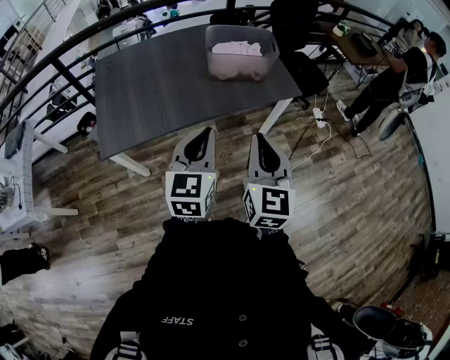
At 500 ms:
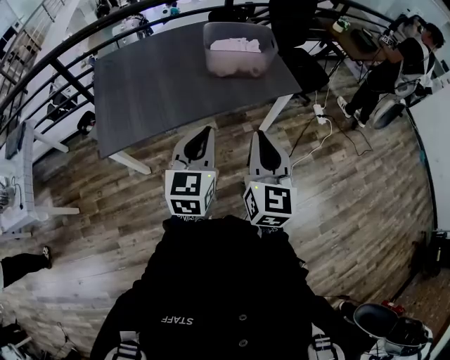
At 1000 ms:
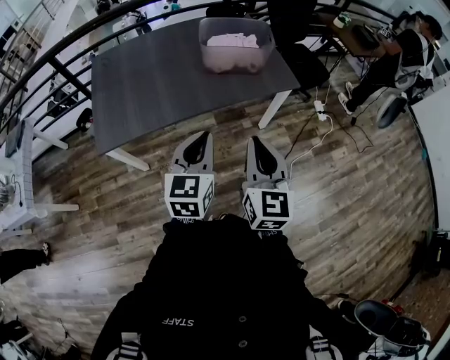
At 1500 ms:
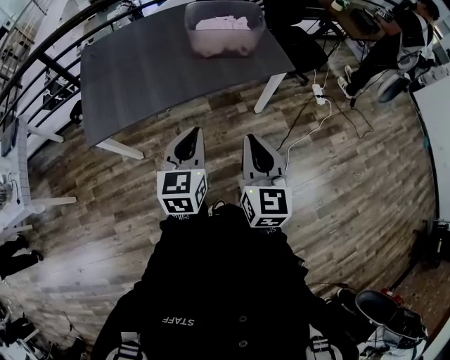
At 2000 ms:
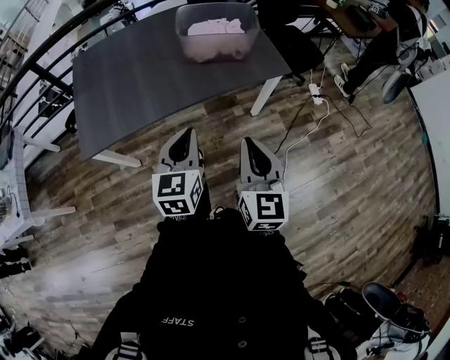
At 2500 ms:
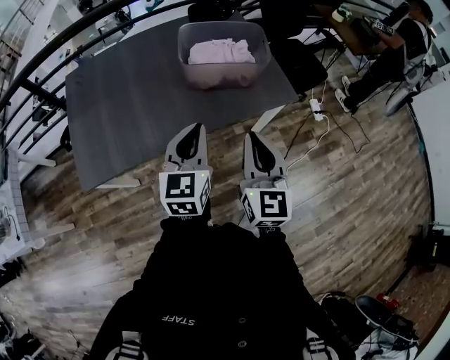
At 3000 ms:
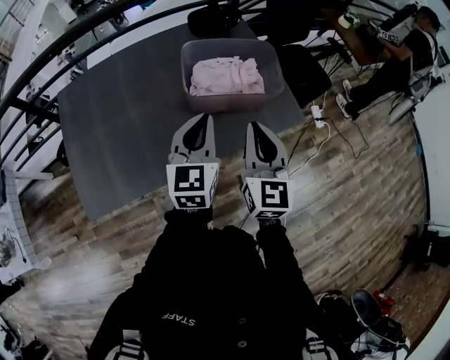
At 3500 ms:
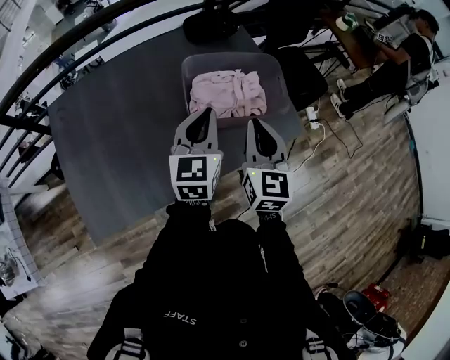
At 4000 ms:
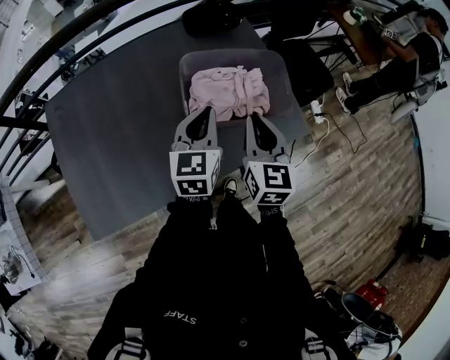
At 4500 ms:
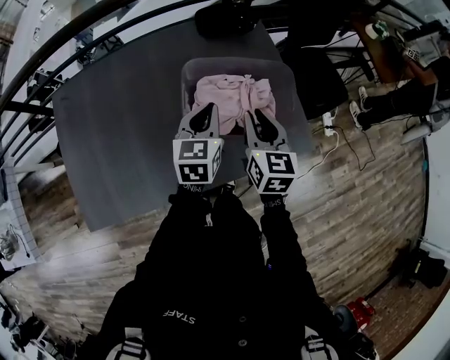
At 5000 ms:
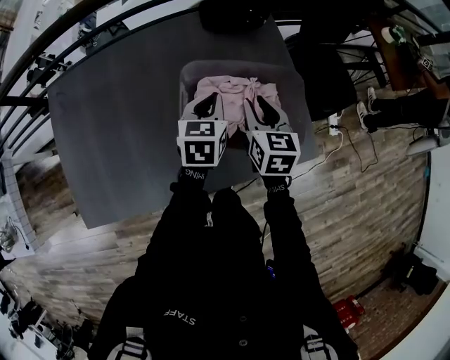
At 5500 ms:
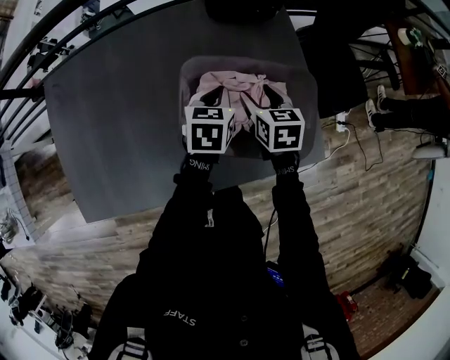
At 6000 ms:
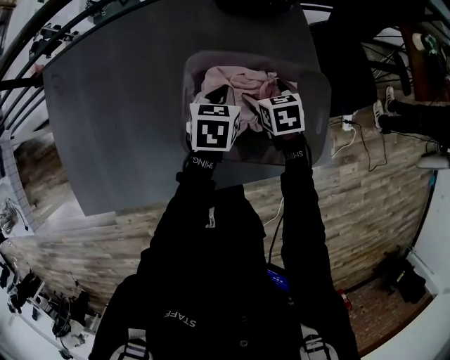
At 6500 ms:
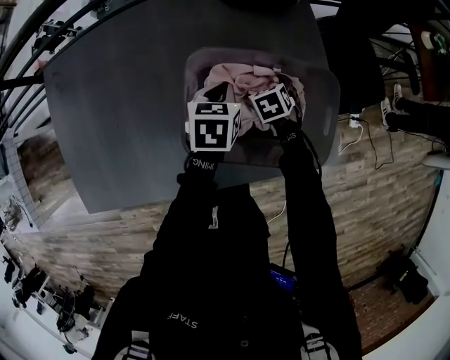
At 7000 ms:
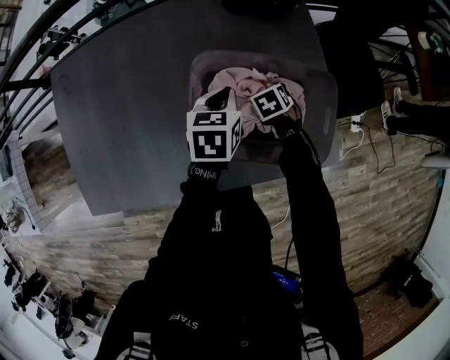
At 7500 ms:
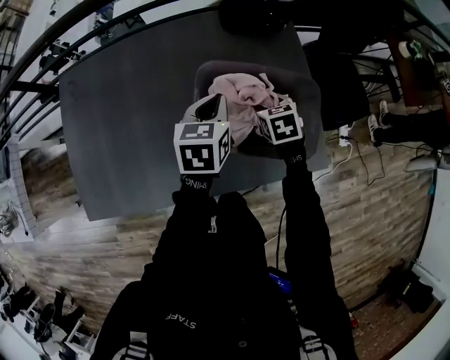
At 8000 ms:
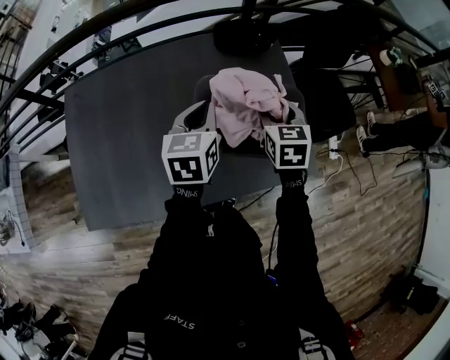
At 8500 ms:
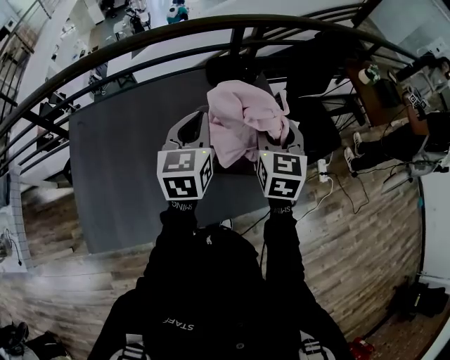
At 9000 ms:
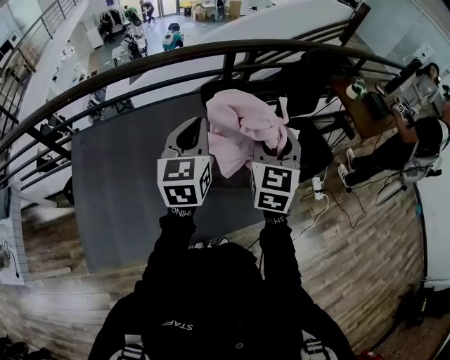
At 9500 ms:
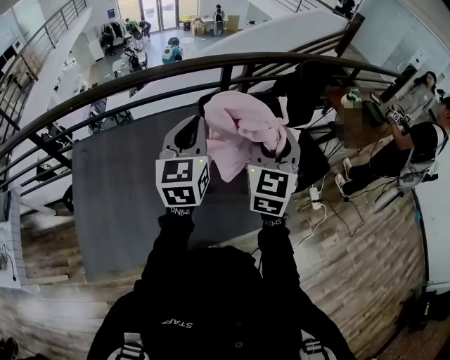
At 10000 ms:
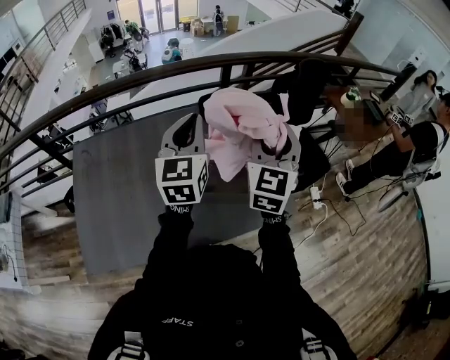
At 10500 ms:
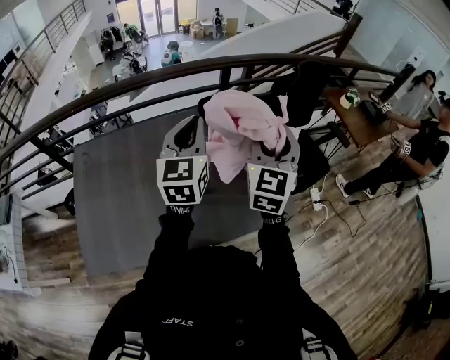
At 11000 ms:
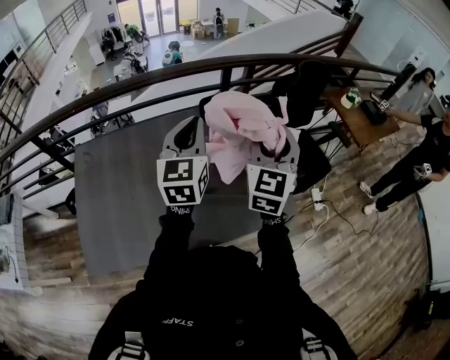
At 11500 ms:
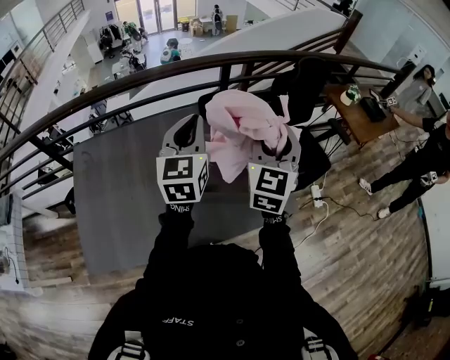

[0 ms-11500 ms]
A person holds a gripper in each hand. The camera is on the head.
0 ms to 2000 ms: The two grippers go roughly 10 cm downward and to the right.
2000 ms to 4000 ms: Both grippers are carried forward, approximately 50 cm.
4000 ms to 6000 ms: The two grippers go roughly 30 cm downward and forward. The left gripper tips its fingers downward by roughly 30 degrees, while the right gripper angles its fingers downward, by roughly 40 degrees, and opens its fingers.
6000 ms to 7500 ms: The left gripper heads upward, covering approximately 10 cm, while the right gripper moves upward, about 5 cm, and closes its fingers.
7500 ms to 9500 ms: The two grippers go some 35 cm upward. The right gripper angles its fingers upward, by about 50 degrees; the left gripper tilts its fingers about 30 degrees upward.
9500 ms to 11500 ms: Both grippers stay put.

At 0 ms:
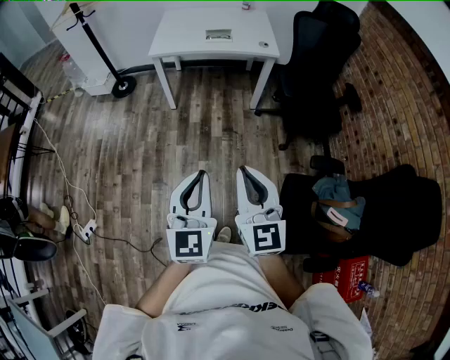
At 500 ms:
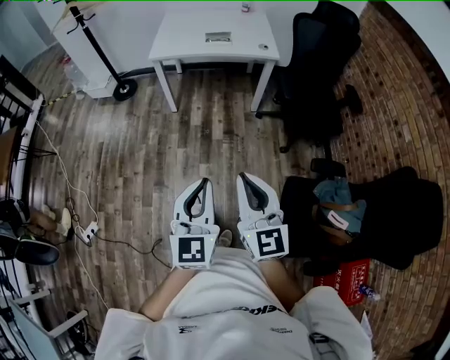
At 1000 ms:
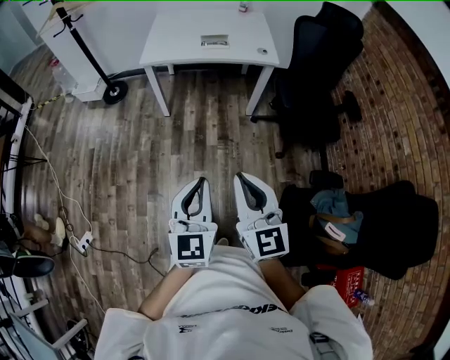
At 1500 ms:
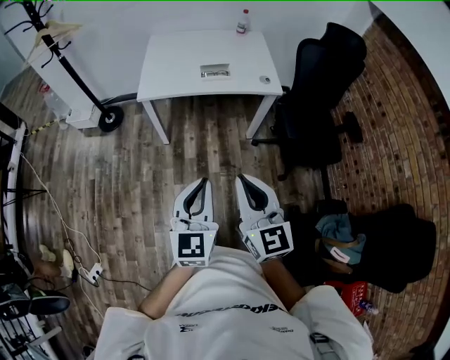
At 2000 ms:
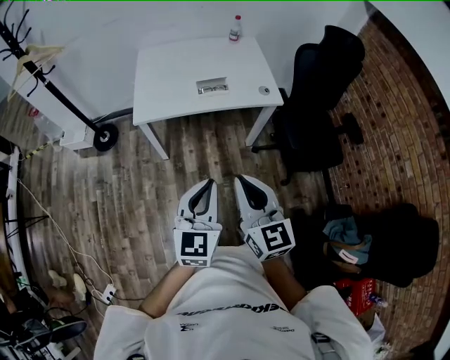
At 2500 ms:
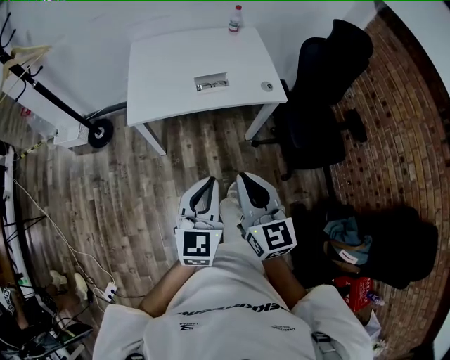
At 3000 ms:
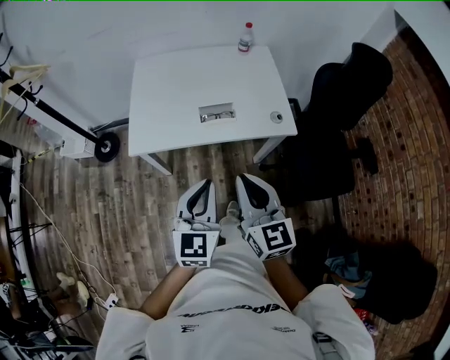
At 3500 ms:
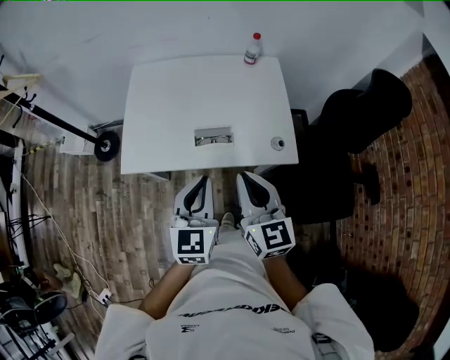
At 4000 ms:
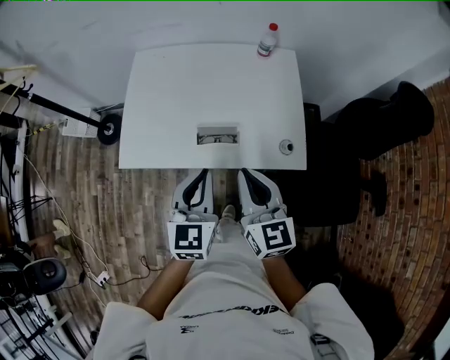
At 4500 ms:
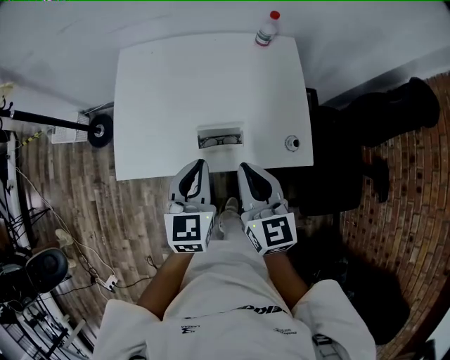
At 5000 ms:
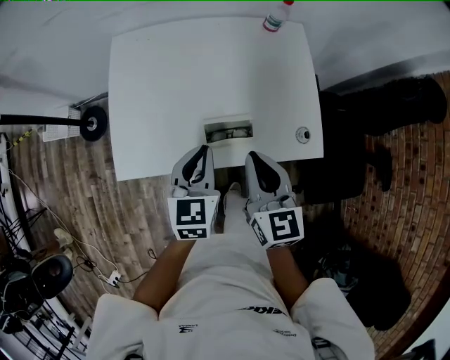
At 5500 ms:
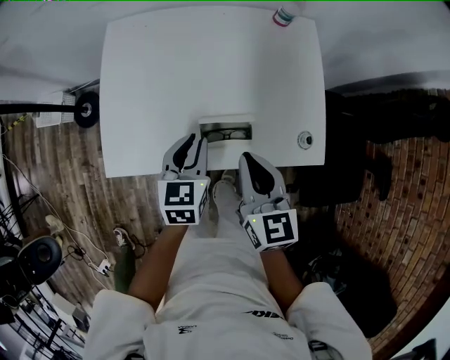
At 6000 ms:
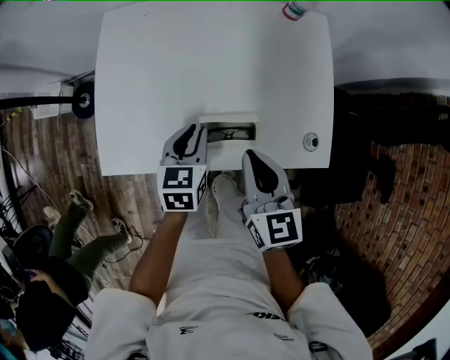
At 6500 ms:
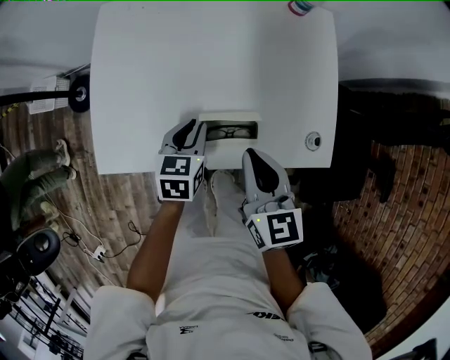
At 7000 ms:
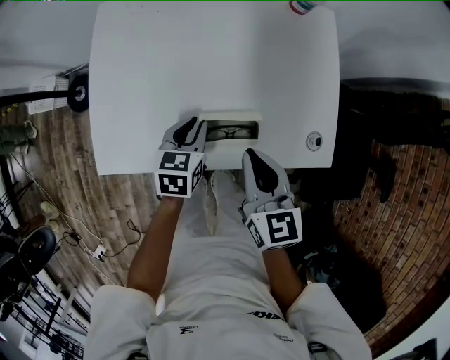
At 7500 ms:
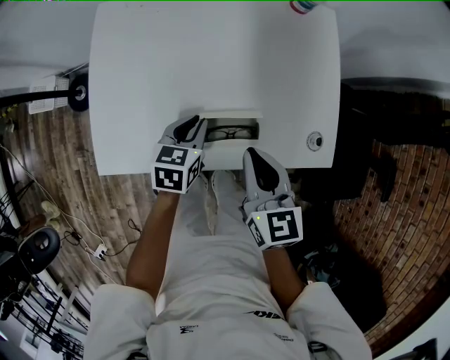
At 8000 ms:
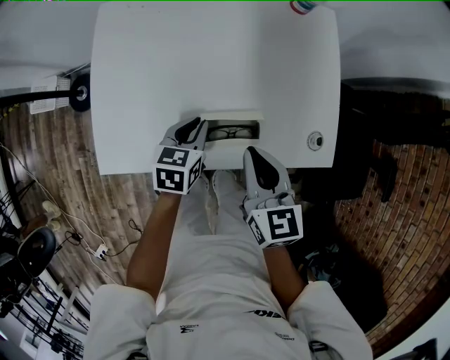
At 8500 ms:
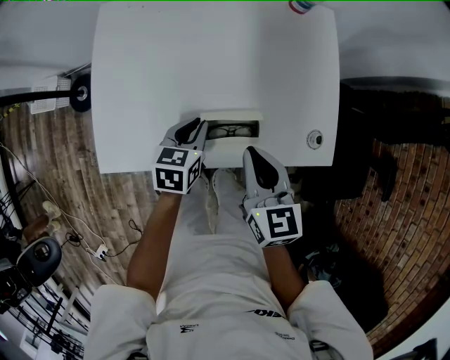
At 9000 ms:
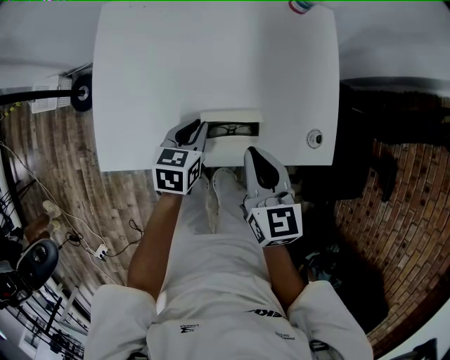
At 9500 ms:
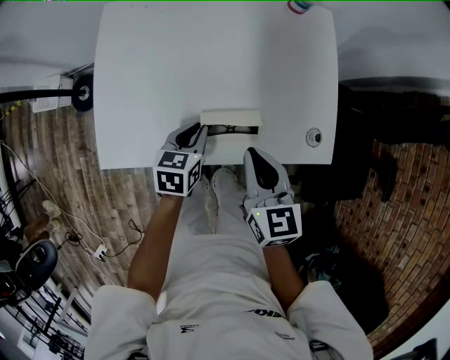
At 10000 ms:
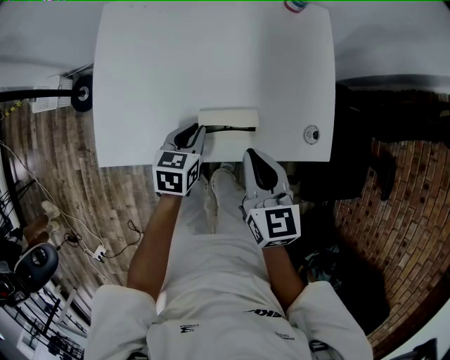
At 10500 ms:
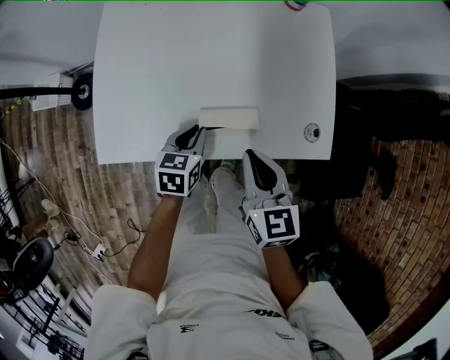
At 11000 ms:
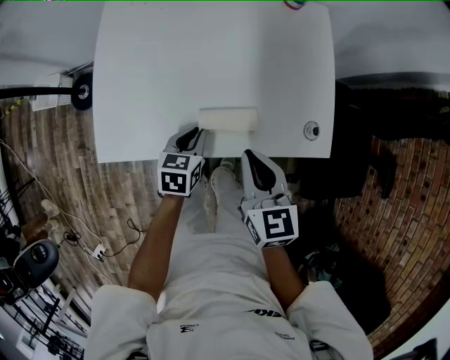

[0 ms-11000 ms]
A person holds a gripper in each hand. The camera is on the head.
0 ms to 2000 ms: Both grippers are carried forward, about 40 cm.
2000 ms to 3500 ms: Both grippers travel together forward, approximately 40 cm.
3500 ms to 5500 ms: The grippers both shift forward and downward by approximately 25 cm. The left gripper turns by about 20 degrees.
5500 ms to 7500 ms: The left gripper moves downward, approximately 10 cm, while the right gripper shifts roughly 5 cm downward.
7500 ms to 9000 ms: There are only small adjustments of the grippers.
9000 ms to 11000 ms: The left gripper is displaced backward by about 5 cm.

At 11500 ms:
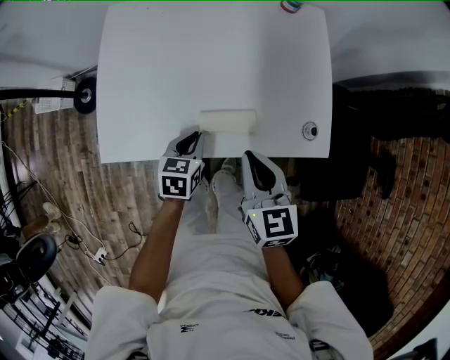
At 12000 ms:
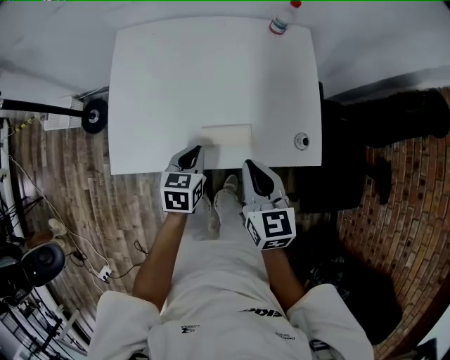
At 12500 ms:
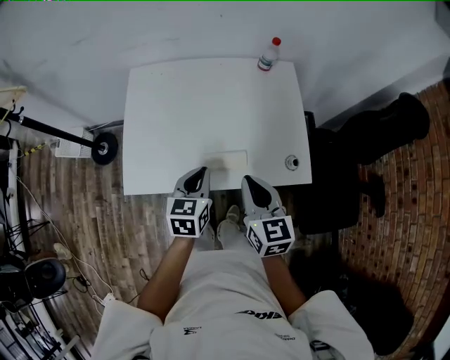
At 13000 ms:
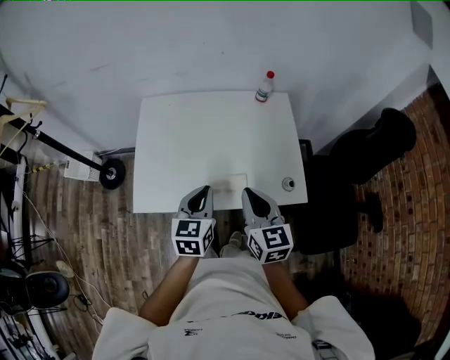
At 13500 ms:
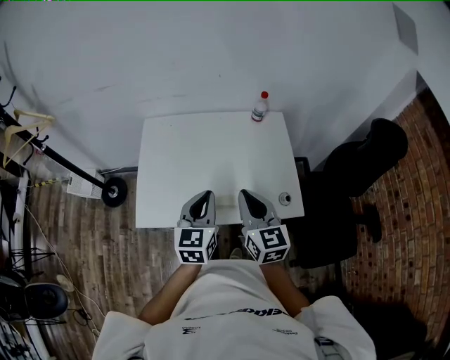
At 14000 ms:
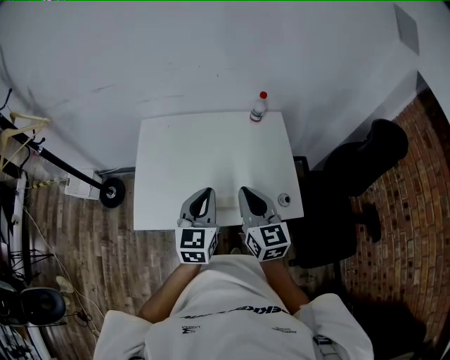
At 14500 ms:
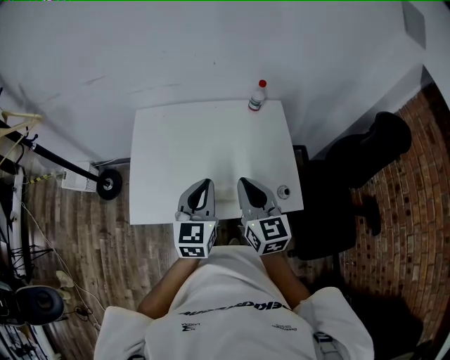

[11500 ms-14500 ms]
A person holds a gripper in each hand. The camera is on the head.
11500 ms to 13000 ms: The right gripper travels upward by about 15 cm, while the left gripper is displaced upward by some 25 cm, and rotates about 20 degrees.
13000 ms to 14500 ms: The left gripper heads upward, covering about 5 cm; the right gripper travels forward by some 5 cm.

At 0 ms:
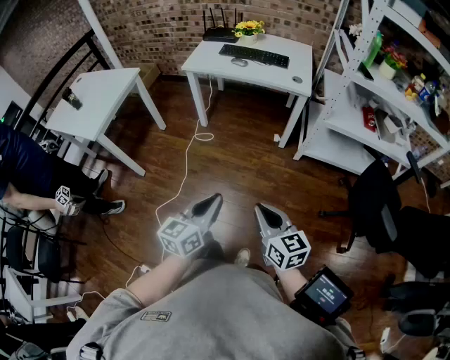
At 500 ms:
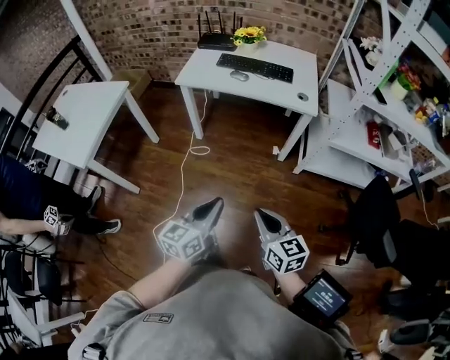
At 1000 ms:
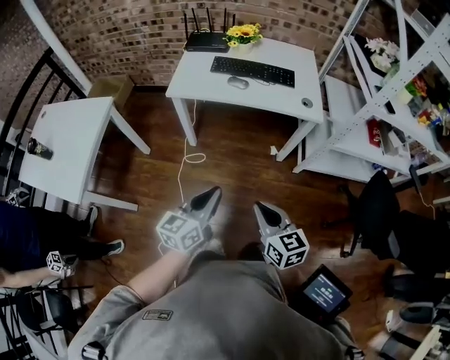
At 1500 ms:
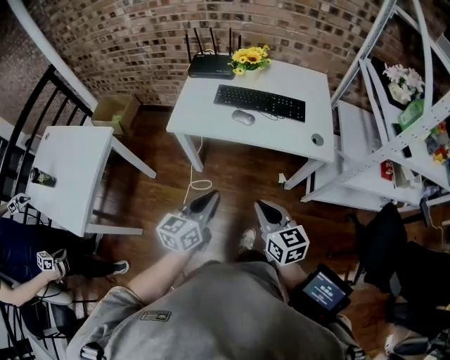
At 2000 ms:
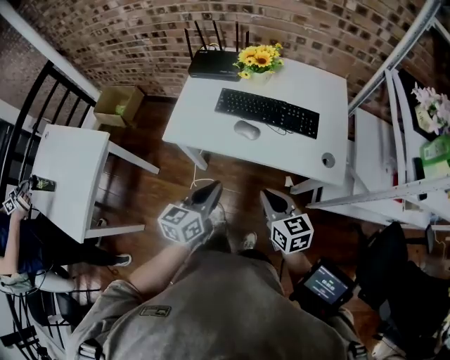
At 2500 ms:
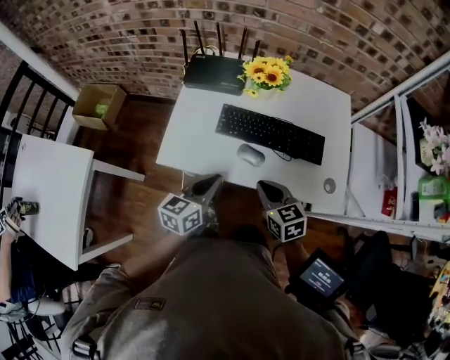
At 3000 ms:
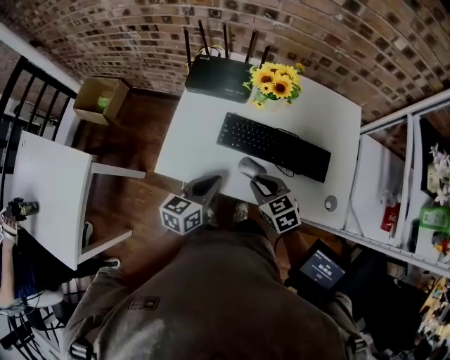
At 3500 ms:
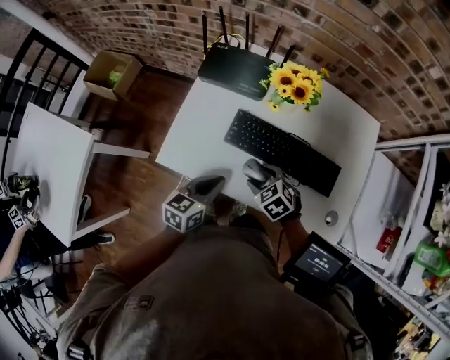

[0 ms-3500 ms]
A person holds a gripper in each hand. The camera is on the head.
0 ms to 2000 ms: The pair of grippers is taken forward, some 60 cm.
2000 ms to 3500 ms: Both grippers move forward and downward, some 25 cm. The right gripper tips its fingers downward by some 30 degrees, and opens up.
